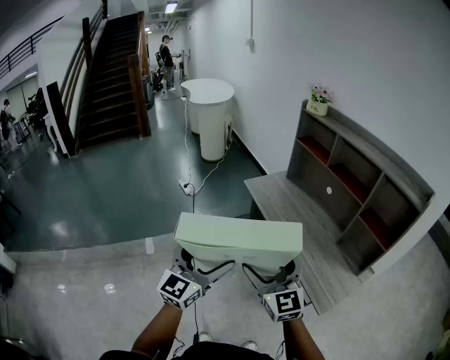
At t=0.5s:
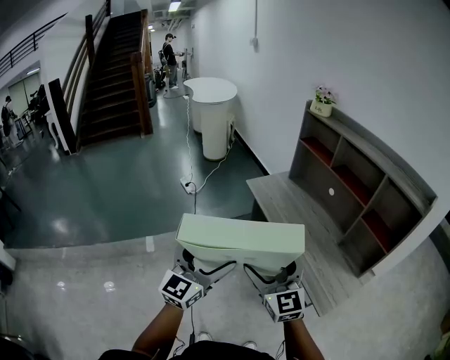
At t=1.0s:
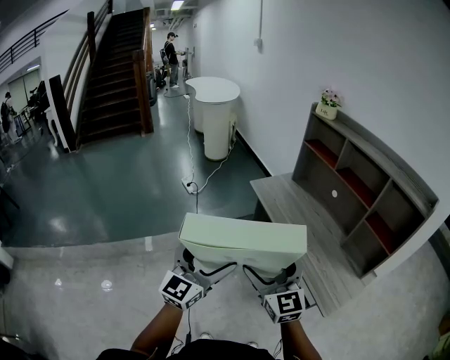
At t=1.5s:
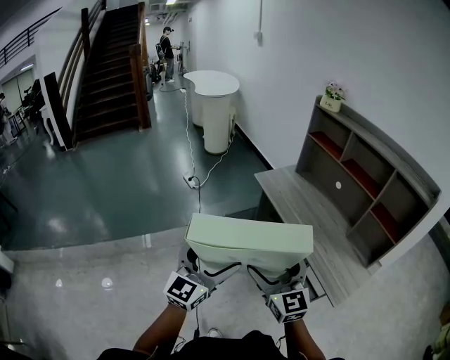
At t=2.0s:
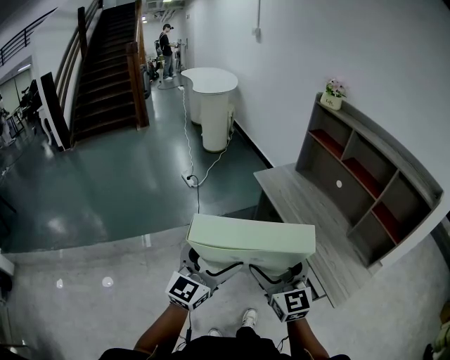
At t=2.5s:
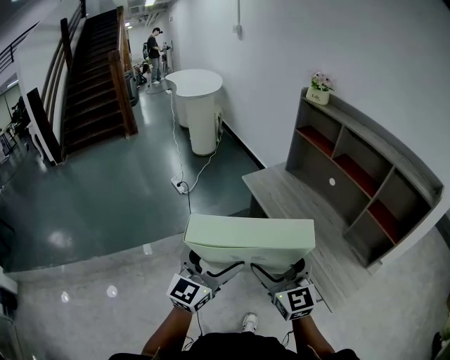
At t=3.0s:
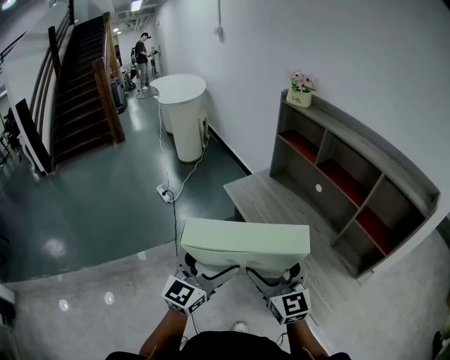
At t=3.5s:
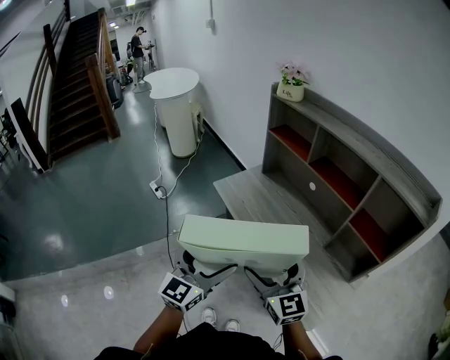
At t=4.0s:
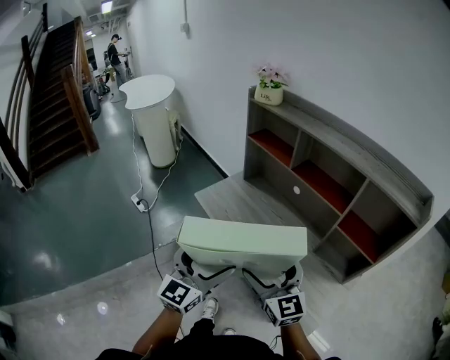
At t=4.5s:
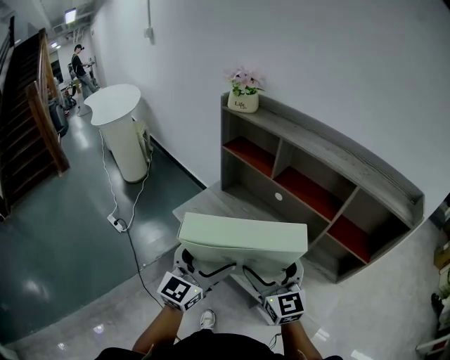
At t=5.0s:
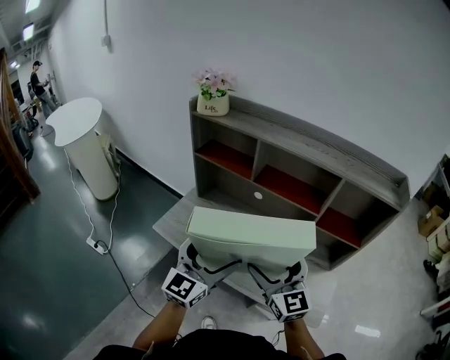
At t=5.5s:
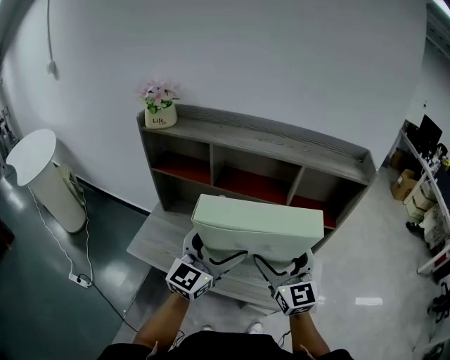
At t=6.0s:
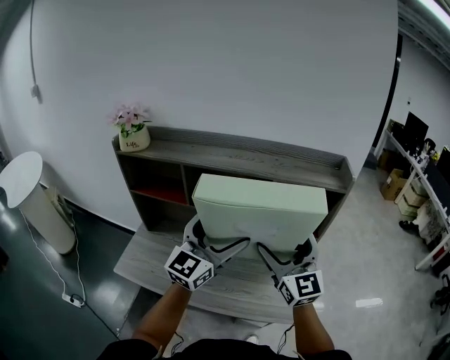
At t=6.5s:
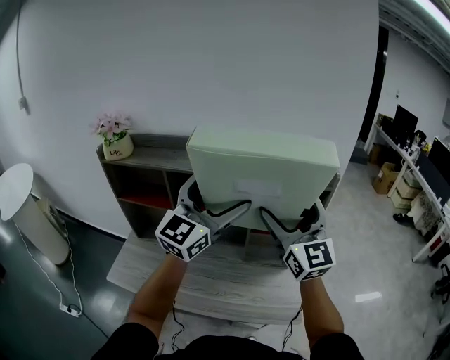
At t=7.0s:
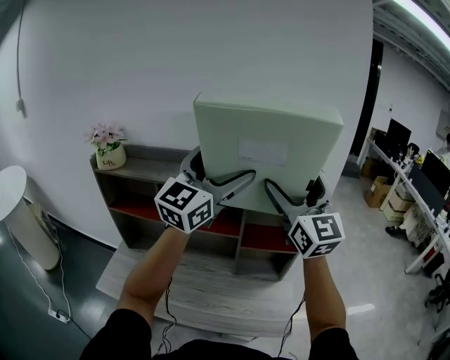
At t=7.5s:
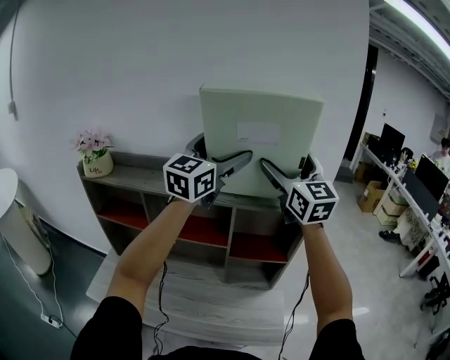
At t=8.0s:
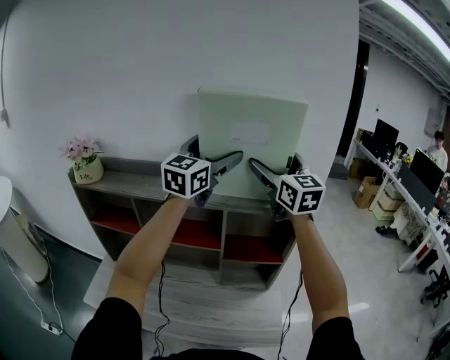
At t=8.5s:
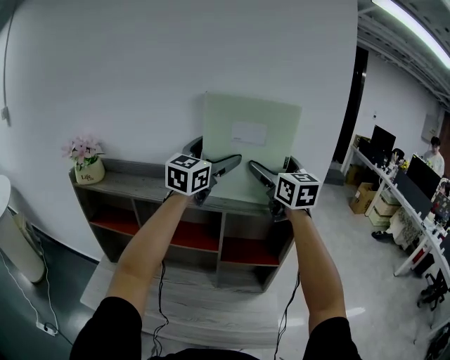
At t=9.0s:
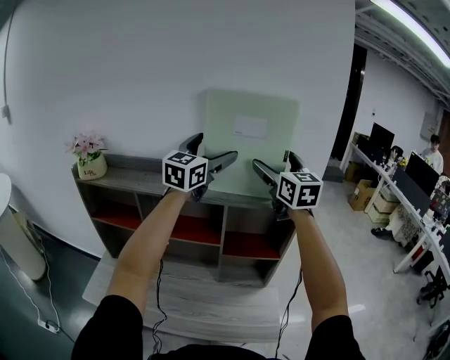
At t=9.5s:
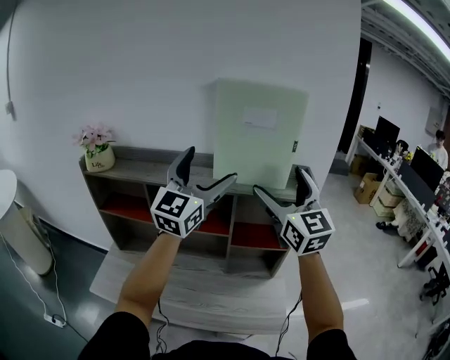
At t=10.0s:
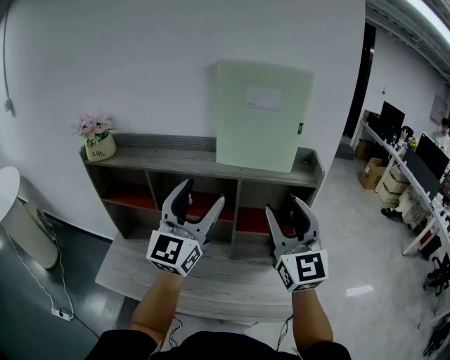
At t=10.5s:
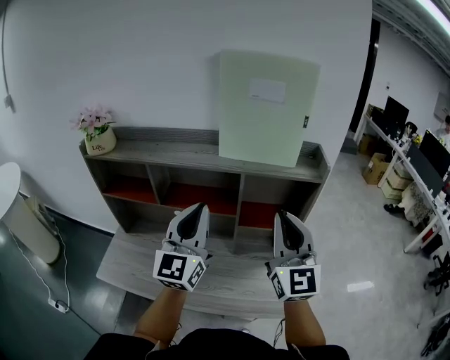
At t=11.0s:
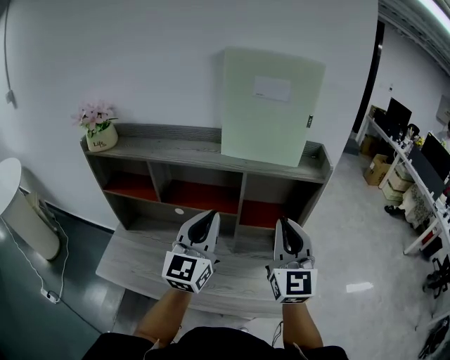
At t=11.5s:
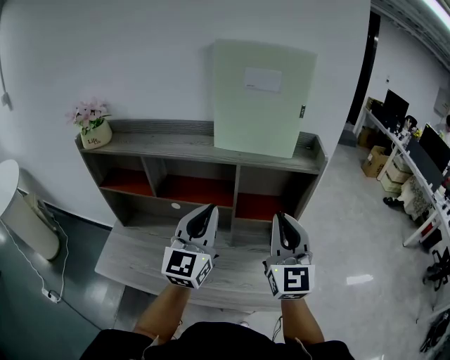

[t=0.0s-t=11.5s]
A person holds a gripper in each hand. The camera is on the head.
t=0.0s to t=2.0s: Both grippers travel together to the left, approximately 5 cm.
t=2.0s to t=4.0s: Both grippers move forward and to the right, about 30 cm.
t=4.0s to t=6.0s: The left gripper shifts by about 30 cm, and rotates approximately 50 degrees, while the right gripper shifts by approximately 25 cm, and changes its angle by about 50 degrees.
t=6.0s to t=7.5s: The two grippers go some 30 cm upward and forward.
t=7.5s to t=9.5s: The right gripper shifts roughly 10 cm backward and downward; the left gripper goes some 10 cm backward.
t=9.5s to t=11.5s: The grippers both shift downward and backward by approximately 15 cm. The left gripper closes. The right gripper closes its fingers.

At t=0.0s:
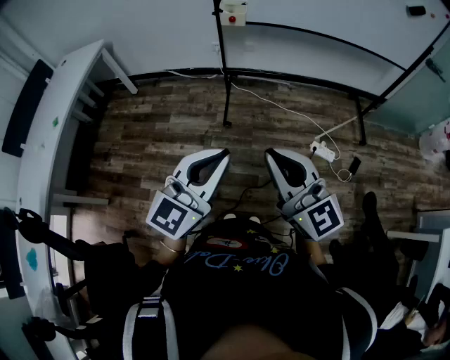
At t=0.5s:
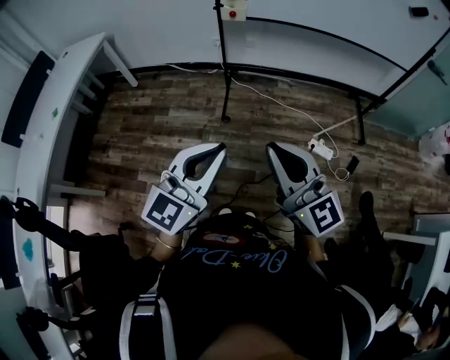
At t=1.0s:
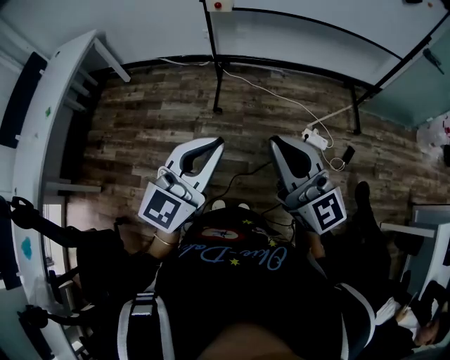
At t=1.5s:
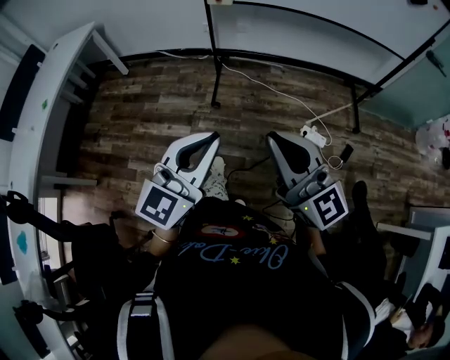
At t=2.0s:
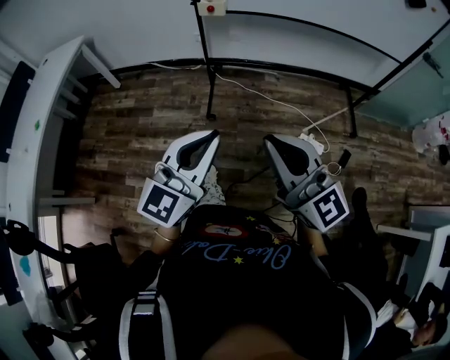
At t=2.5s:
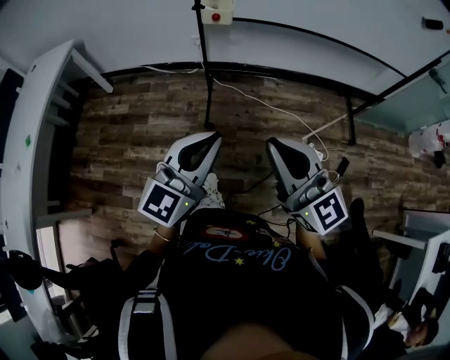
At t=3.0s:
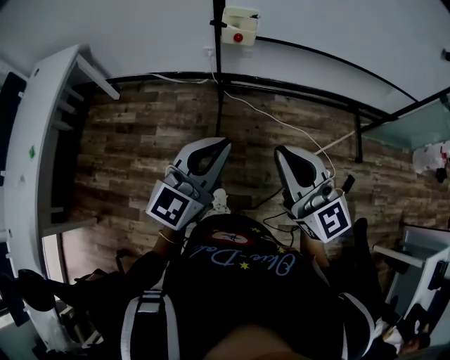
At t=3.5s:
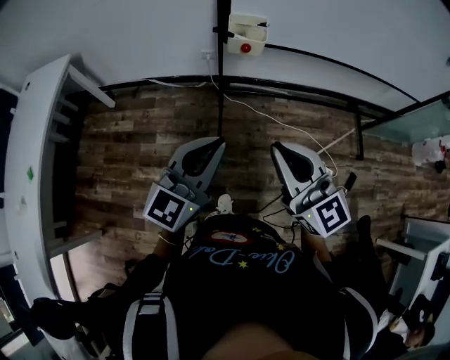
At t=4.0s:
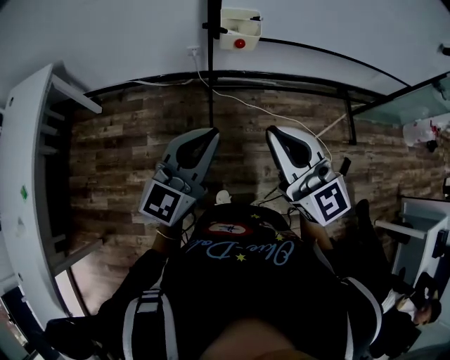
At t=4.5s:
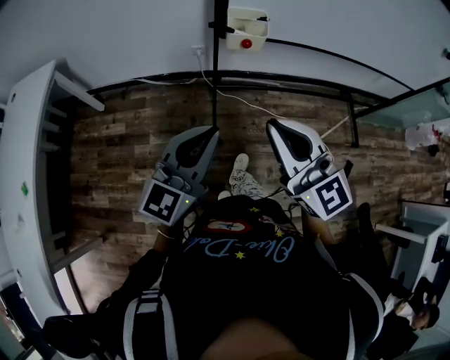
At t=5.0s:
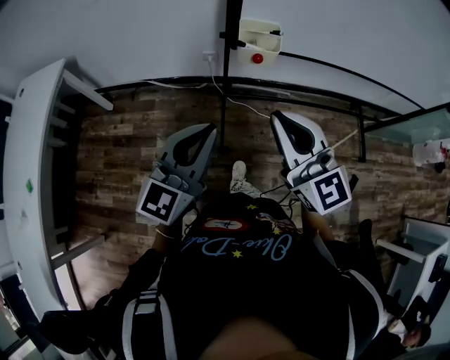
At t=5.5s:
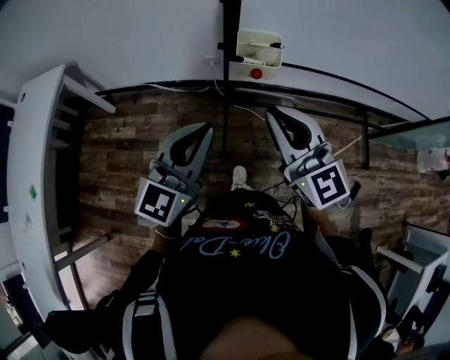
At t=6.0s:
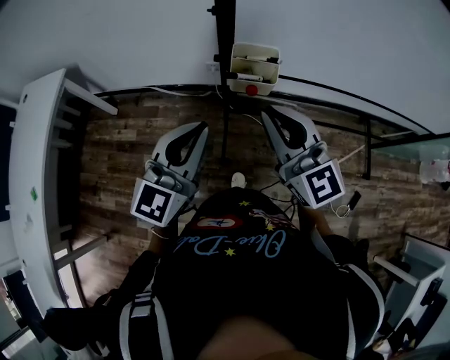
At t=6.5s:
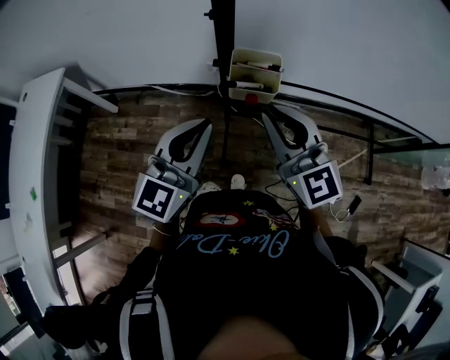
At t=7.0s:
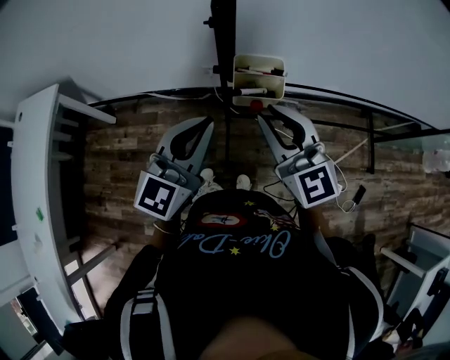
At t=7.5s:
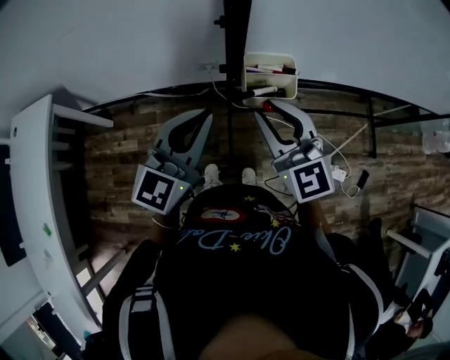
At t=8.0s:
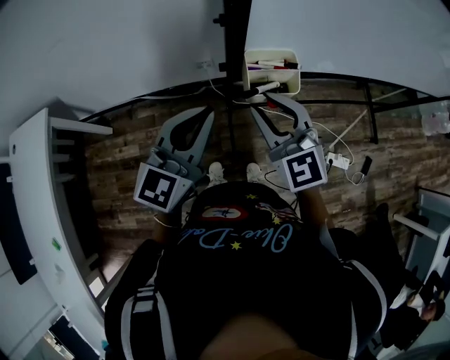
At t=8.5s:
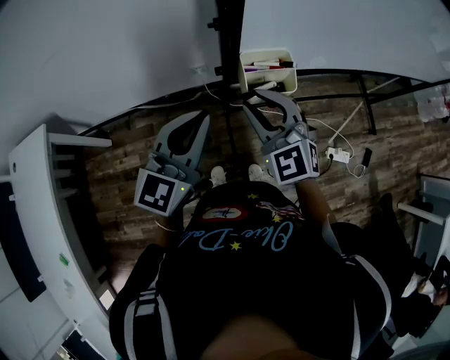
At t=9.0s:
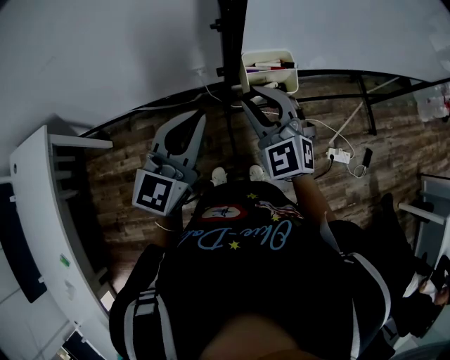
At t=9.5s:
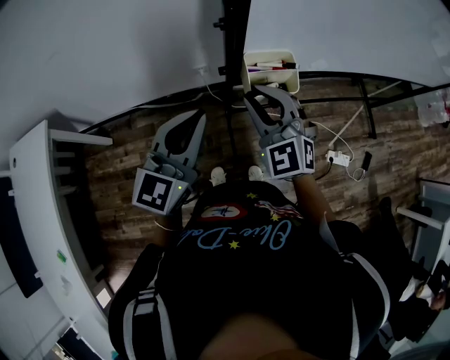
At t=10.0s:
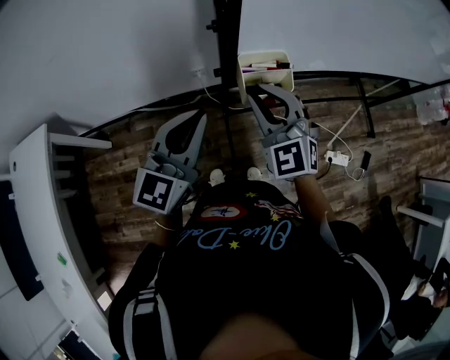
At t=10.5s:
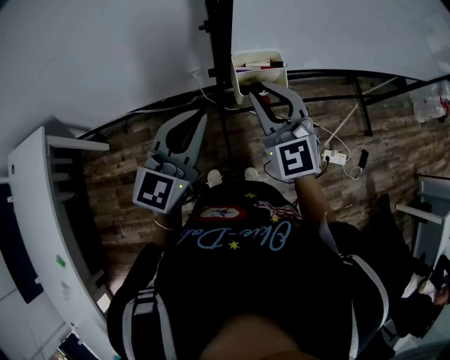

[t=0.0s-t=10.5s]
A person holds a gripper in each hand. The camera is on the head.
t=0.0s to t=2.0s: The left gripper heads forward, covering approximately 5 cm, while the right gripper moves to the right, roughly 5 cm.
t=2.0s to t=4.0s: Both grippers travel together forward and to the left, some 30 cm.
t=4.0s to t=6.5s: Both grippers move forward, about 20 cm.
t=6.5s to t=8.5s: The right gripper shifts roughly 10 cm to the left, downward and forward, and rotates about 30 degrees, while the left gripper goes about 10 cm to the left and forward.
t=8.5s to t=10.5s: The grippers stay close to where they were, moving slightly.

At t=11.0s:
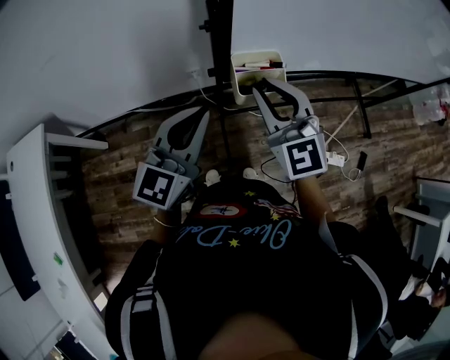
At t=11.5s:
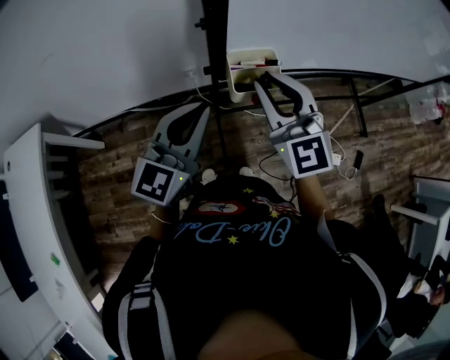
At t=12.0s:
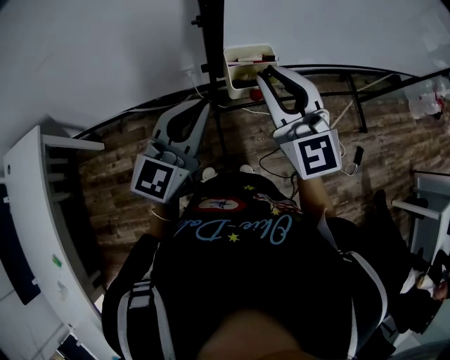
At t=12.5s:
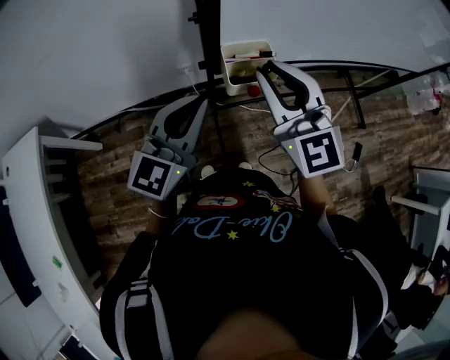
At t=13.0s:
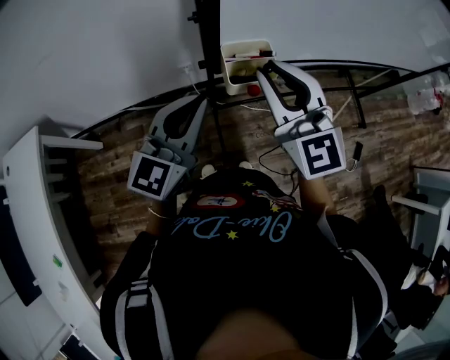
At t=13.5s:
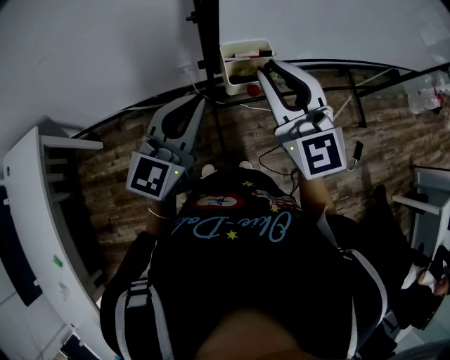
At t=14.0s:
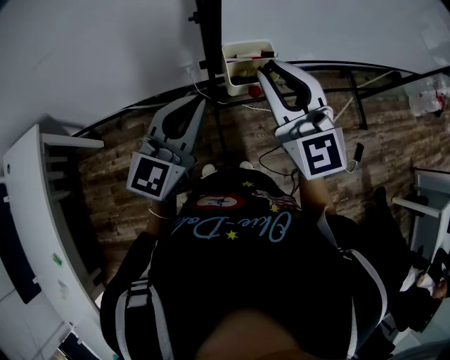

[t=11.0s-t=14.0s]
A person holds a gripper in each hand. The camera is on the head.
t=11.0s to t=12.5s: The right gripper shifts roughly 5 cm upward.
t=12.5s to t=14.0s: The two grippers keep their place.

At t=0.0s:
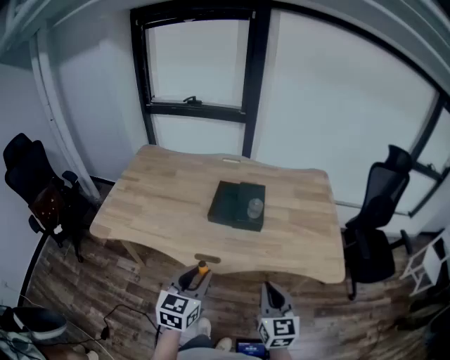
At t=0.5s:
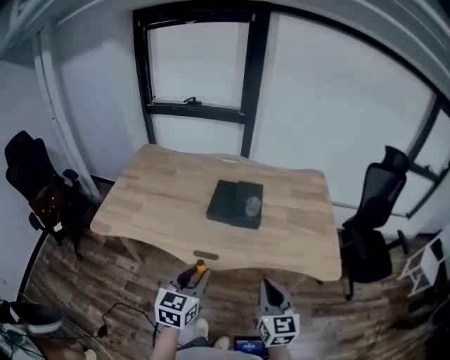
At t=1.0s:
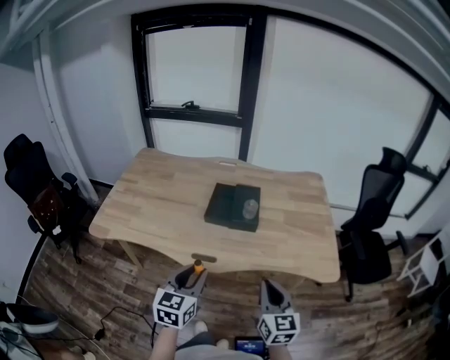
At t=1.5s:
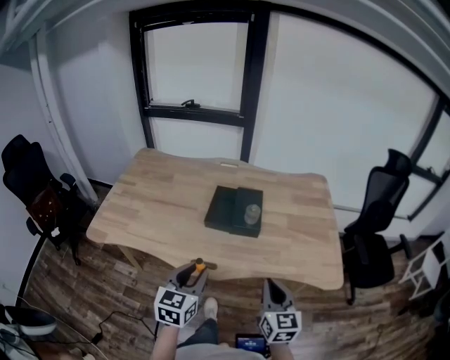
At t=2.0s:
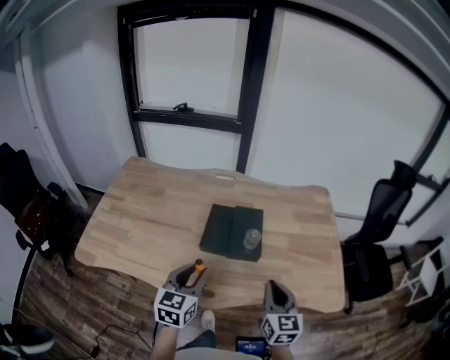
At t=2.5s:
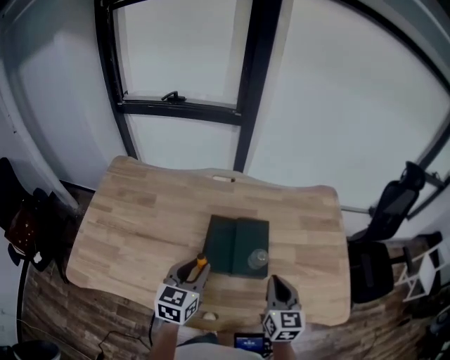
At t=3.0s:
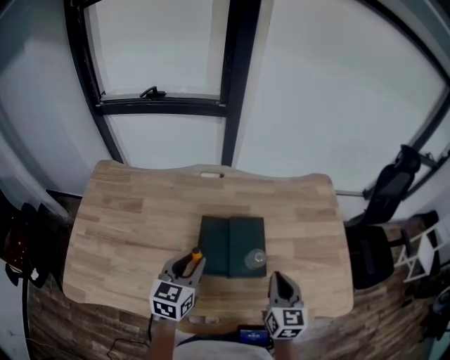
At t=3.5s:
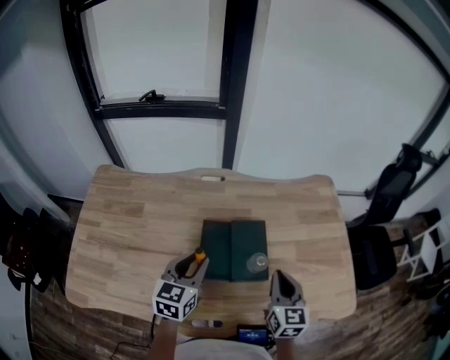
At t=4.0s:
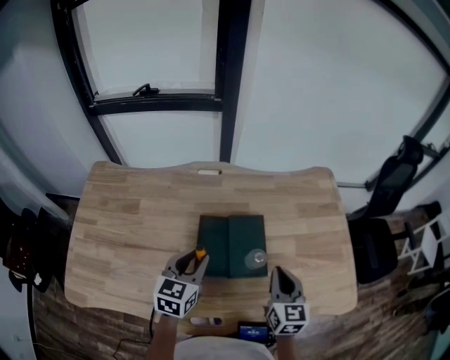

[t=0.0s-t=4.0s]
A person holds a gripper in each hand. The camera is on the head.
t=0.0s to t=2.0s: Both grippers move forward, approximately 15 cm.
t=2.0s to t=4.0s: Both grippers move forward, roughly 20 cm.
